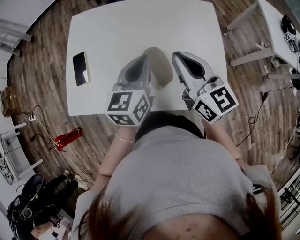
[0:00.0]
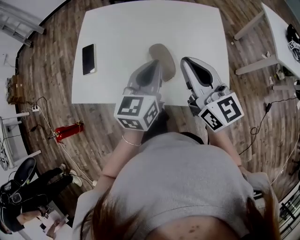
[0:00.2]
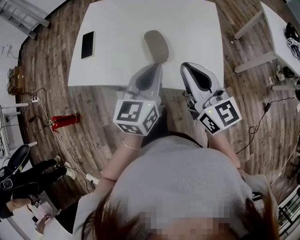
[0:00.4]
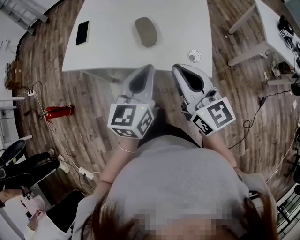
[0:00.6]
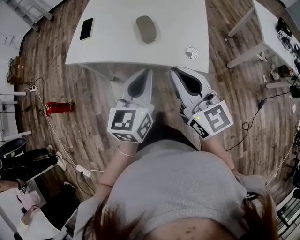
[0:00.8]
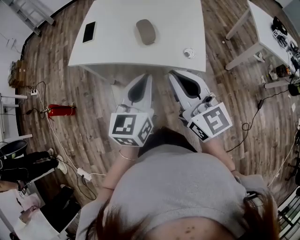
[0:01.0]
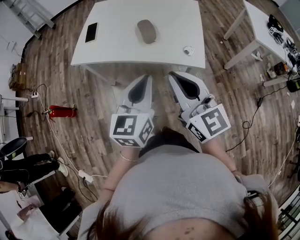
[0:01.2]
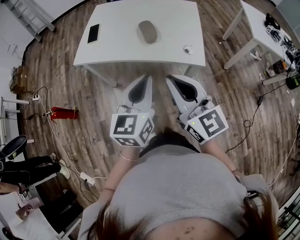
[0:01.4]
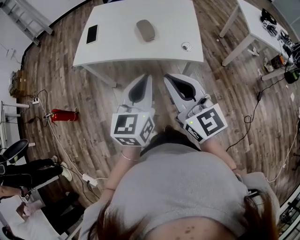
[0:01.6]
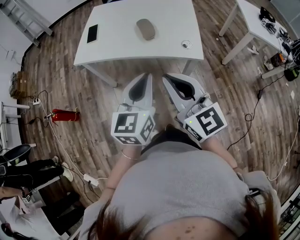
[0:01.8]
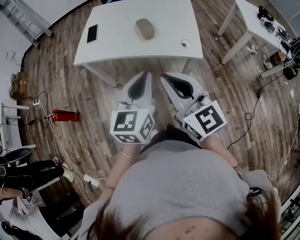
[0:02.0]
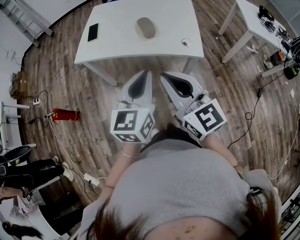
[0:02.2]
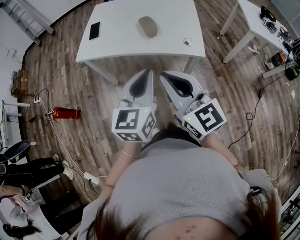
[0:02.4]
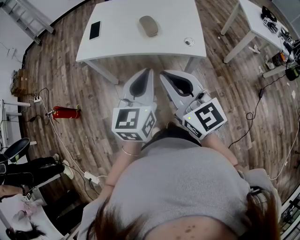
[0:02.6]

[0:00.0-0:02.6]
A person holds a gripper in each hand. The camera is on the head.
0.0 to 1.2 s: The grippers both shift backward by roughly 35 cm.
1.2 to 2.6 s: The left gripper changes place by about 5 cm, while the right gripper goes roughly 10 cm to the left and backward.

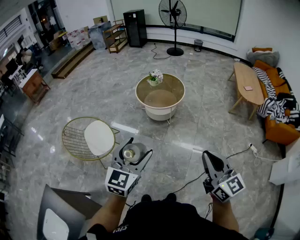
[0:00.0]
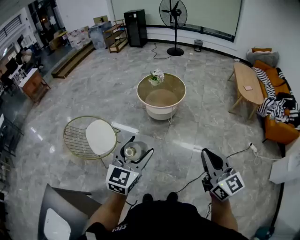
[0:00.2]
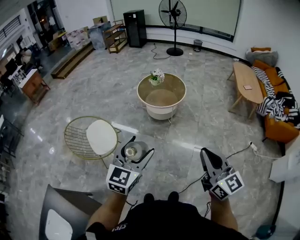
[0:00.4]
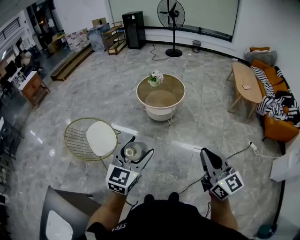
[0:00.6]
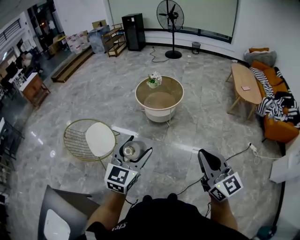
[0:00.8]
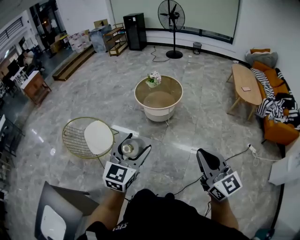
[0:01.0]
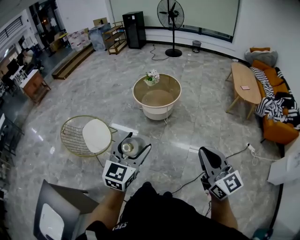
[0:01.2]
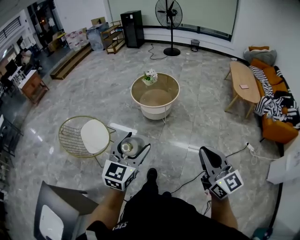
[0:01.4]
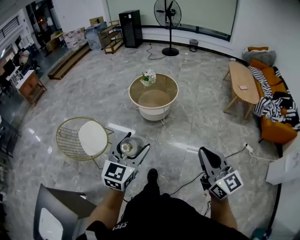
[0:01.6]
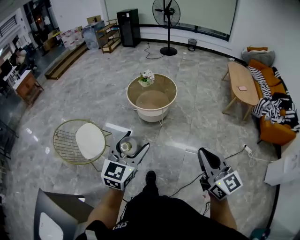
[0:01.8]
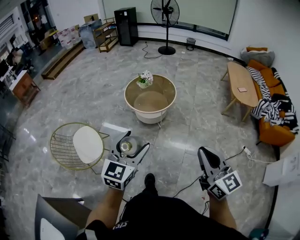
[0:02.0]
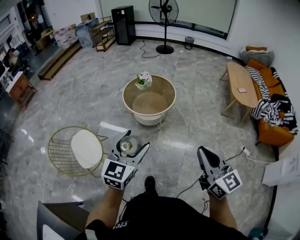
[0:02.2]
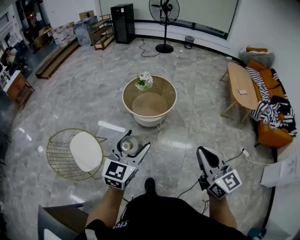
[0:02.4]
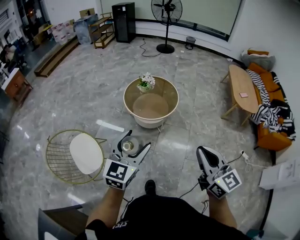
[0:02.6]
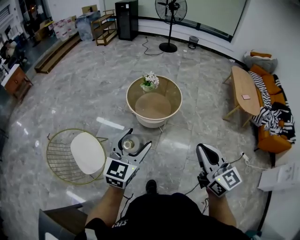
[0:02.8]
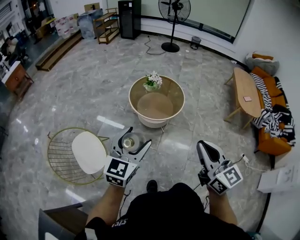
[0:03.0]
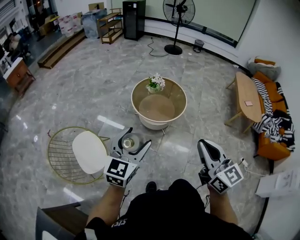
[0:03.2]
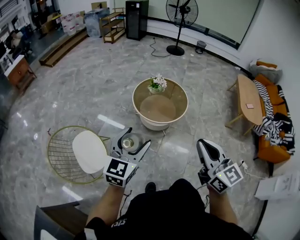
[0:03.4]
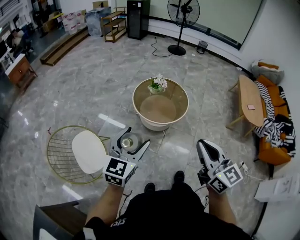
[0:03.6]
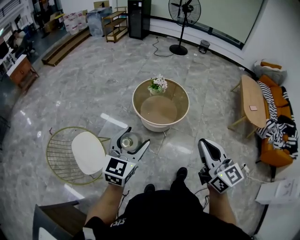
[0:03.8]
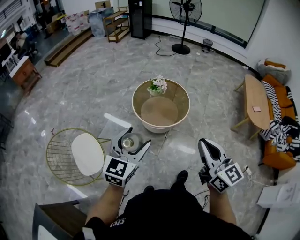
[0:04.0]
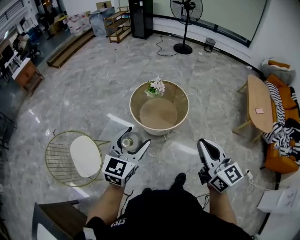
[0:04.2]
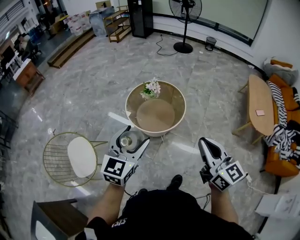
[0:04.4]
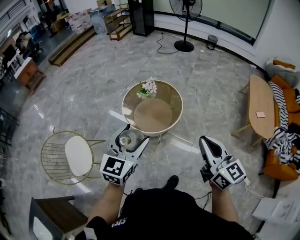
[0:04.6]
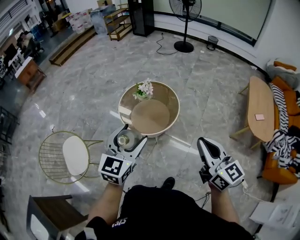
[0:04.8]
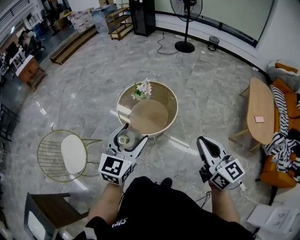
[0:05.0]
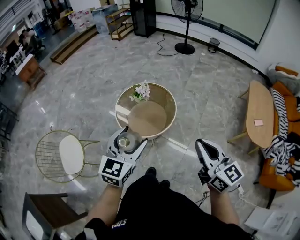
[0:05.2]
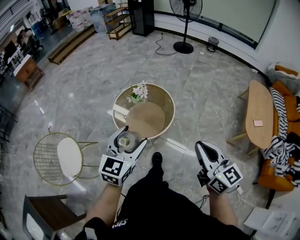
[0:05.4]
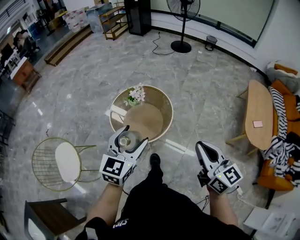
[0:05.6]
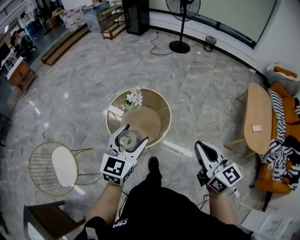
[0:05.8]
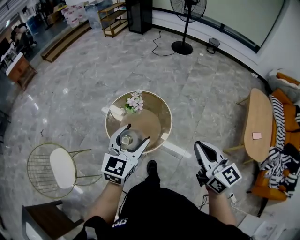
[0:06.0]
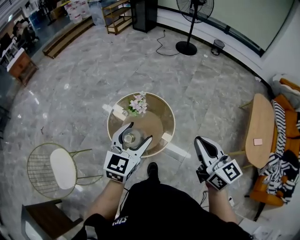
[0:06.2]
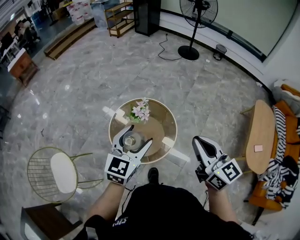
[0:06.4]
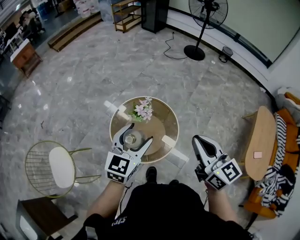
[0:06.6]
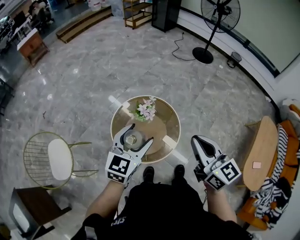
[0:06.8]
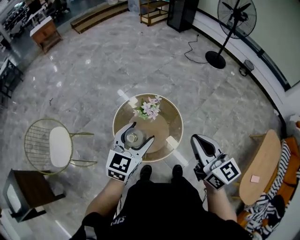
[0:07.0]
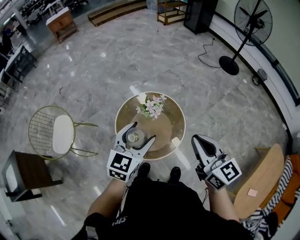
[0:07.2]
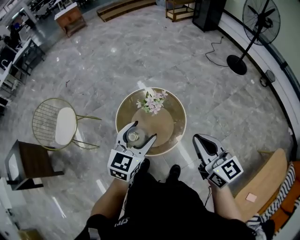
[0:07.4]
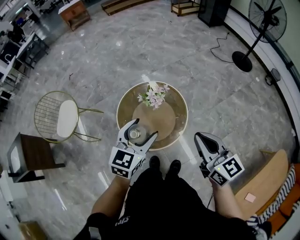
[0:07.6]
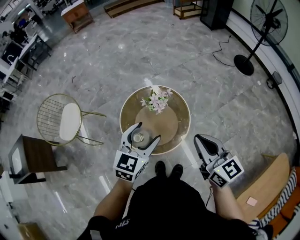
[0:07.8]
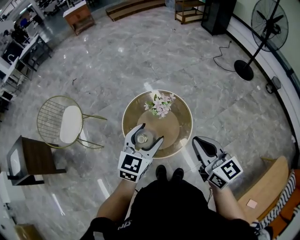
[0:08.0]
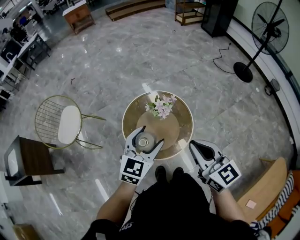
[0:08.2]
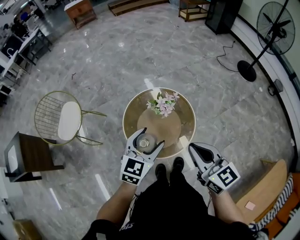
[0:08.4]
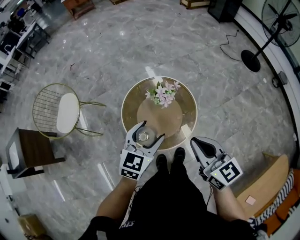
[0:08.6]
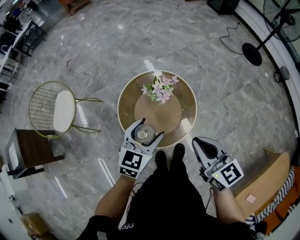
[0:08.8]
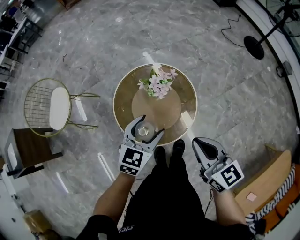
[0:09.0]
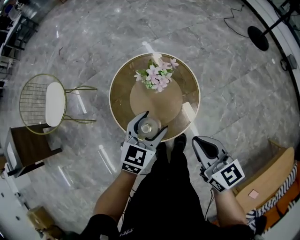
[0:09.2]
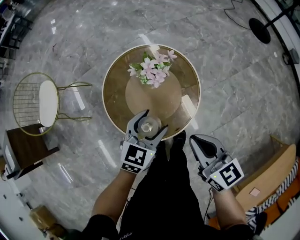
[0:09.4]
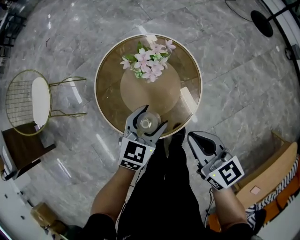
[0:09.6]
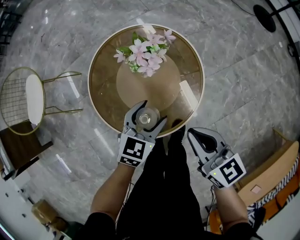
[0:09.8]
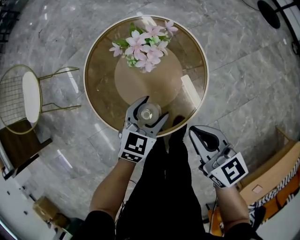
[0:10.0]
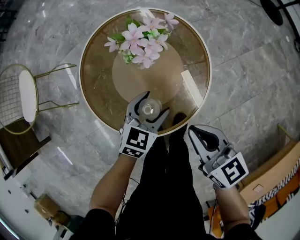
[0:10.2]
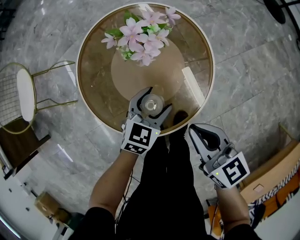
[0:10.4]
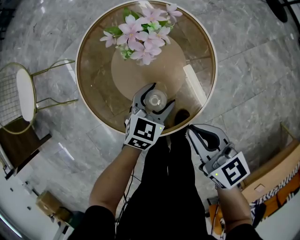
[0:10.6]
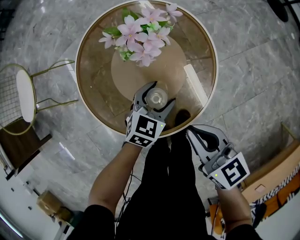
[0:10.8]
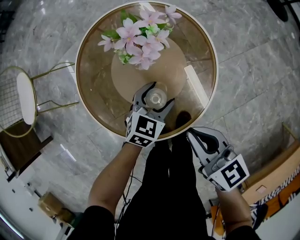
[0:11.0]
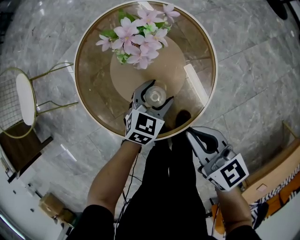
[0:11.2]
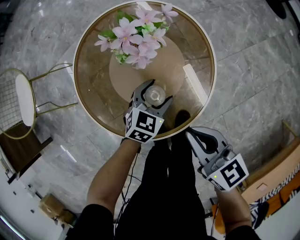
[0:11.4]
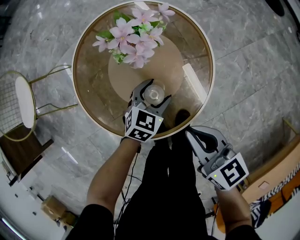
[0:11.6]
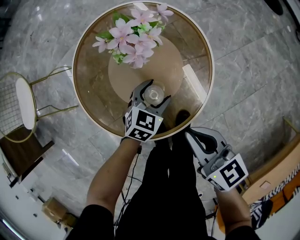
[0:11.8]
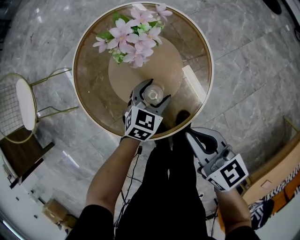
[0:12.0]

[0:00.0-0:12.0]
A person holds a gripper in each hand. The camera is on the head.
0.0 to 1.6 s: The left gripper shifts about 5 cm to the right.
1.6 to 3.0 s: Both grippers move forward and to the left, roughly 35 cm.
3.0 to 4.4 s: The grippers both shift to the right and forward by roughly 25 cm.
4.4 to 6.0 s: Both grippers travel together forward and to the right, approximately 30 cm.
6.0 to 7.6 s: The left gripper shifts by roughly 20 cm, and changes its angle by about 30 degrees; the right gripper changes place by some 30 cm, and changes its angle by roughly 40 degrees.
7.6 to 9.0 s: Both grippers move downward and forward, some 15 cm.
9.0 to 10.4 s: Both grippers travel together downward, roughly 35 cm.
10.4 to 12.0 s: The left gripper heads downward, covering approximately 5 cm.

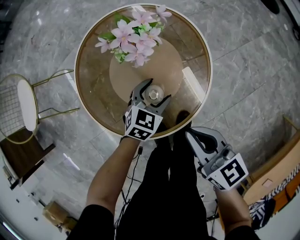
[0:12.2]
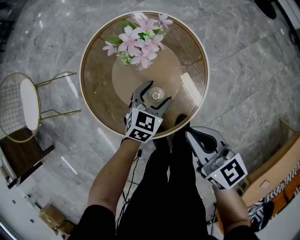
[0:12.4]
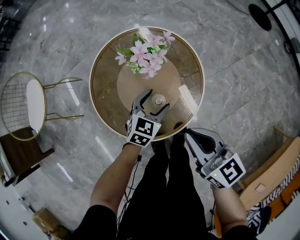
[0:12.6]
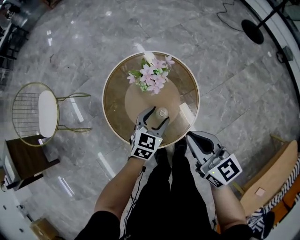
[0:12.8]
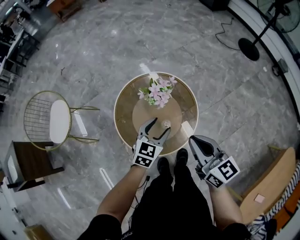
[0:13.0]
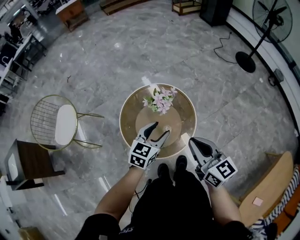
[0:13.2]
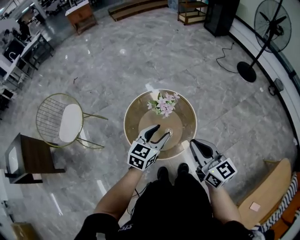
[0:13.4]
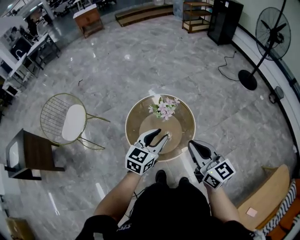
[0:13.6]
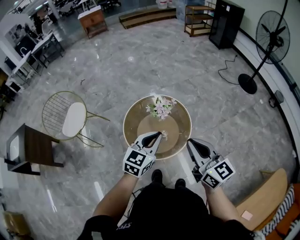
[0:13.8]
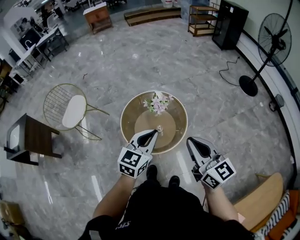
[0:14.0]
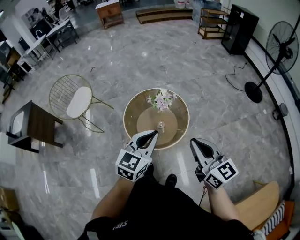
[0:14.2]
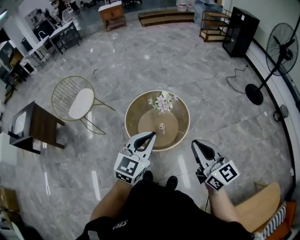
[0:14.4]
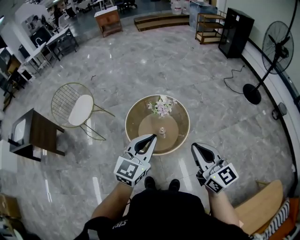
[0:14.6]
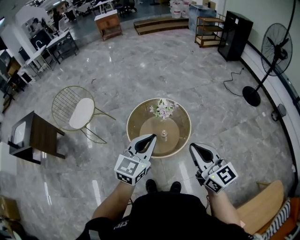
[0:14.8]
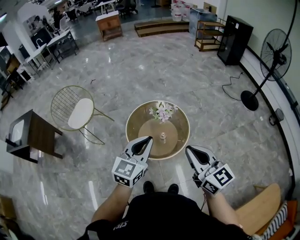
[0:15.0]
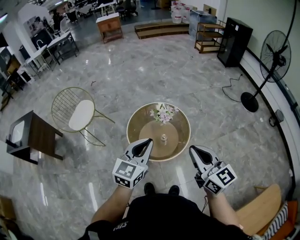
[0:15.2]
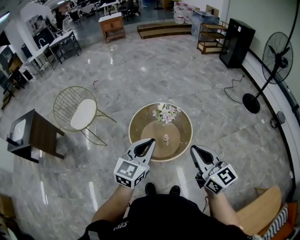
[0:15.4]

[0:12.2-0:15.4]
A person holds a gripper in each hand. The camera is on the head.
12.2 to 13.8 s: Both grippers move upward, about 50 cm. The left gripper swivels about 30 degrees, and closes, while the right gripper rotates roughly 30 degrees.
13.8 to 15.4 s: The right gripper goes some 10 cm backward and upward. Meanwhile the left gripper heads upward and backward, covering some 15 cm.

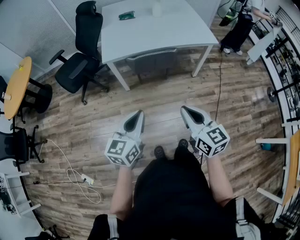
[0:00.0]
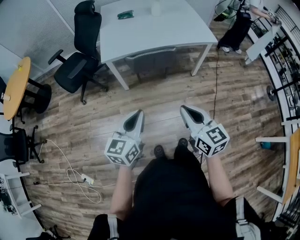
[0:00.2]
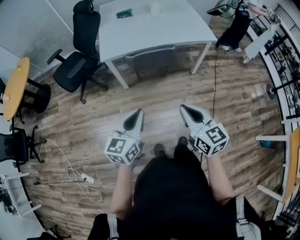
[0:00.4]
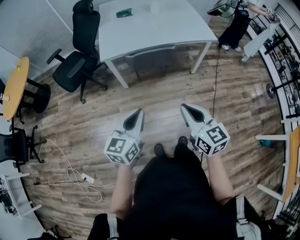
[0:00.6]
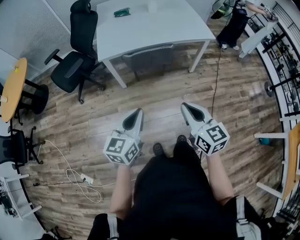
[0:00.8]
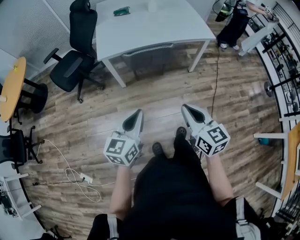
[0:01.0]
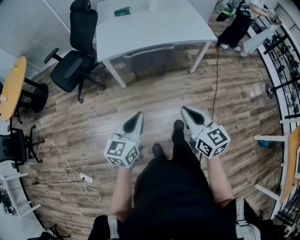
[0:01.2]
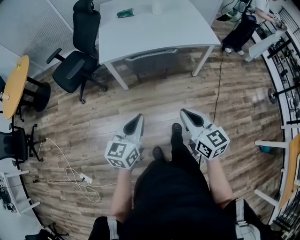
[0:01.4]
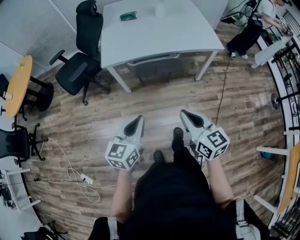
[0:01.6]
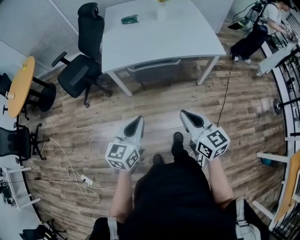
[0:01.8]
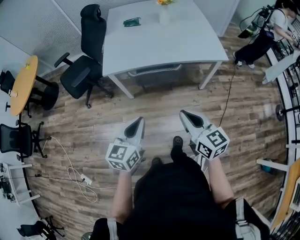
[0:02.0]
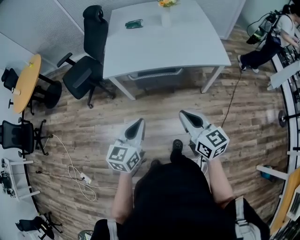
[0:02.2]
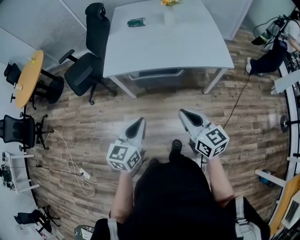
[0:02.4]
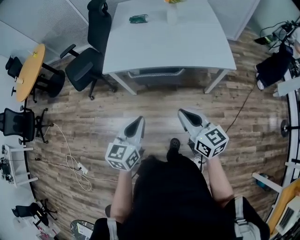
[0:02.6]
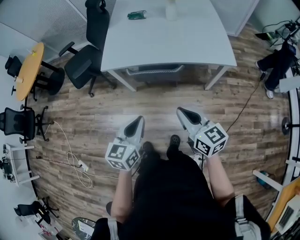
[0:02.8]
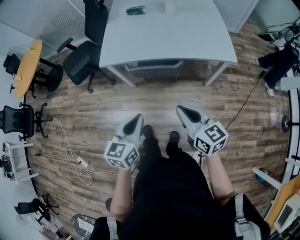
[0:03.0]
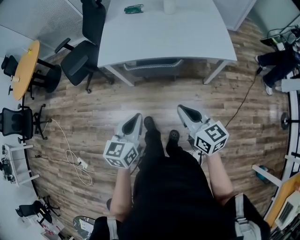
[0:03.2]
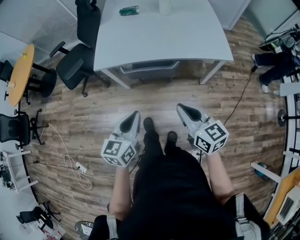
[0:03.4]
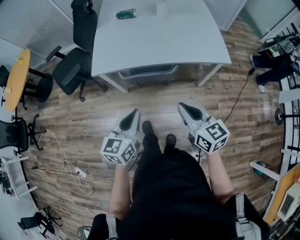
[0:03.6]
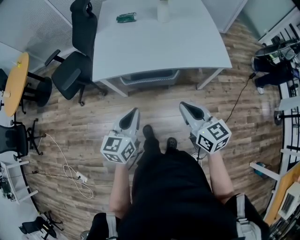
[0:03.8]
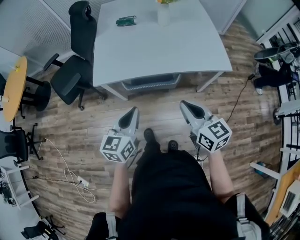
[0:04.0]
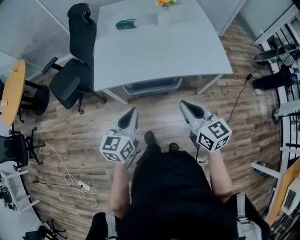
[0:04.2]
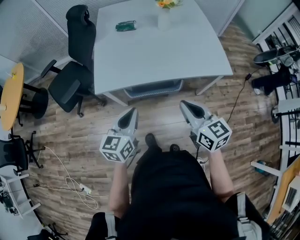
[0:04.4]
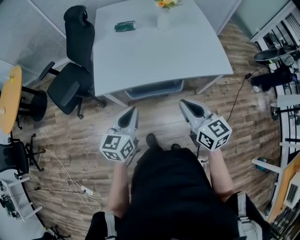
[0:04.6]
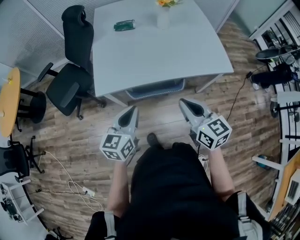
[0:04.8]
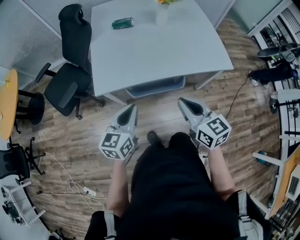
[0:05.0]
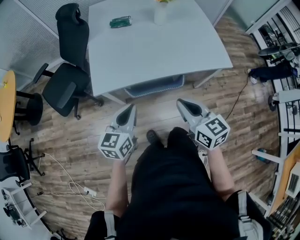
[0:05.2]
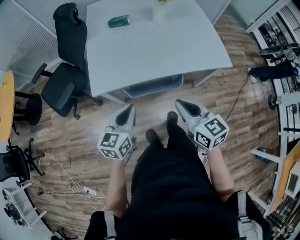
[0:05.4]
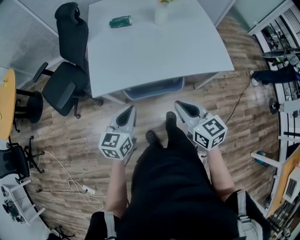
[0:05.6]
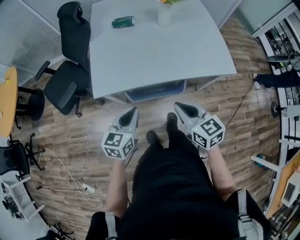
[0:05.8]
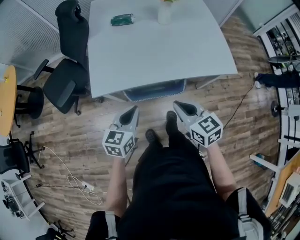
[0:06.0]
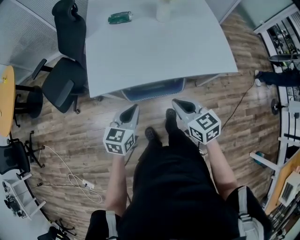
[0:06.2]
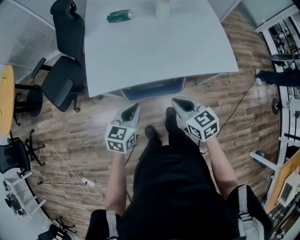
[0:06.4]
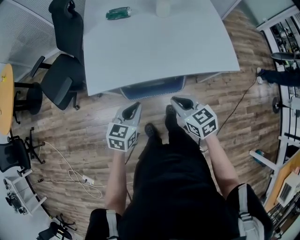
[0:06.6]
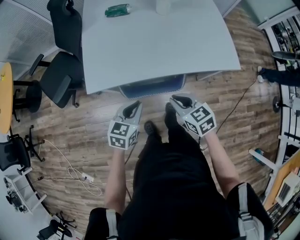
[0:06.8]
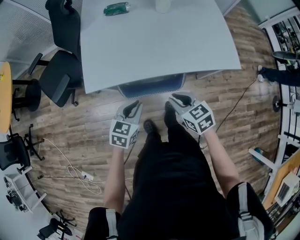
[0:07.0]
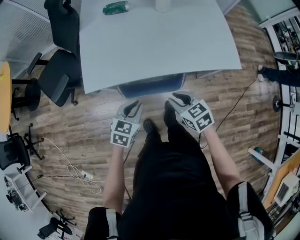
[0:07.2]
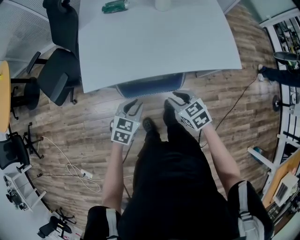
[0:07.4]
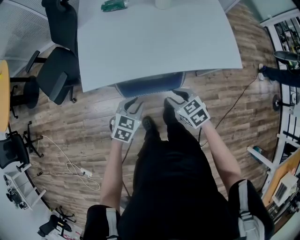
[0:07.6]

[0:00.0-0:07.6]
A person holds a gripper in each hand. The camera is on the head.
0.0 to 1.6 s: Both grippers move forward, about 5 cm.
1.6 to 3.0 s: The right gripper shifts about 15 cm forward and to the right. The left gripper shifts about 15 cm to the right and forward.
3.0 to 4.6 s: The right gripper goes roughly 15 cm forward. Meanwhile the left gripper moves forward and to the left, approximately 20 cm.
4.6 to 6.0 s: Both grippers travel together downward, some 5 cm.
6.0 to 7.6 s: Both grippers travel together downward, some 15 cm. The left gripper rotates some 30 degrees, and opens up. Meanwhile the right gripper swivels about 20 degrees, and opens its fingers.
